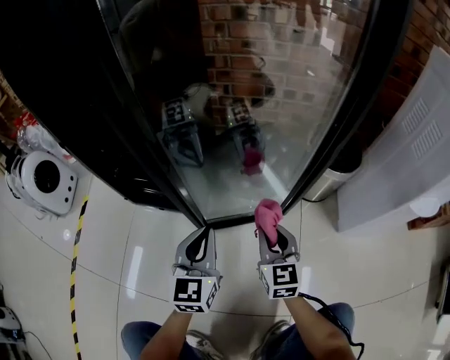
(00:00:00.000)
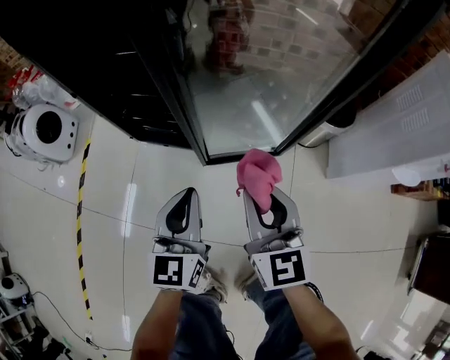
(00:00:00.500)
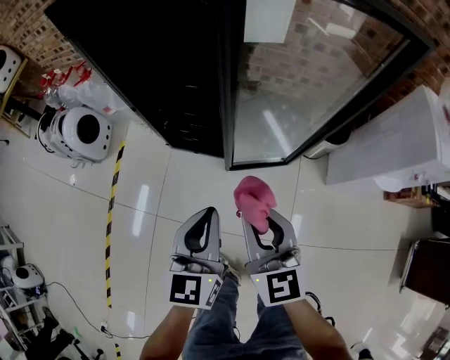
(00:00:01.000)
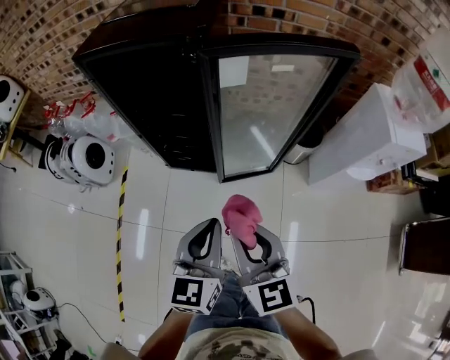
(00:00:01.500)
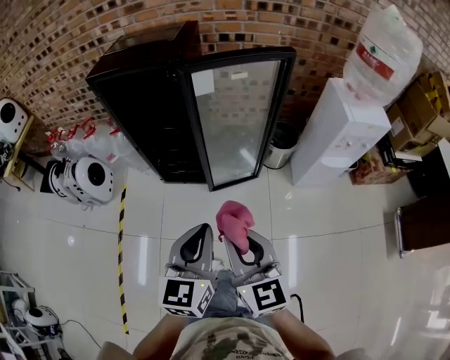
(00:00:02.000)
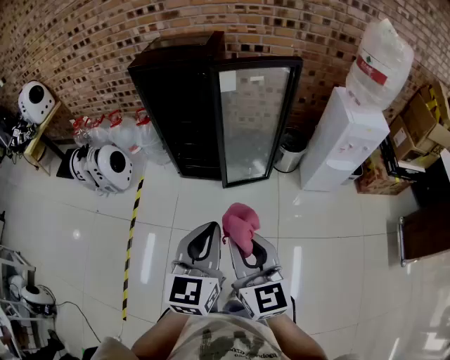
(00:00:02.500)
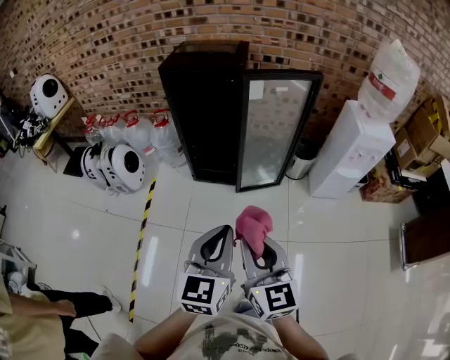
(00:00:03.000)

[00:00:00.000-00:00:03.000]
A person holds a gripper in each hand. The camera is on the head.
00:00:00.000 to 00:00:01.500: Both grippers move upward, roughly 50 cm.
00:00:01.500 to 00:00:03.000: Both grippers move backward and upward, approximately 30 cm.

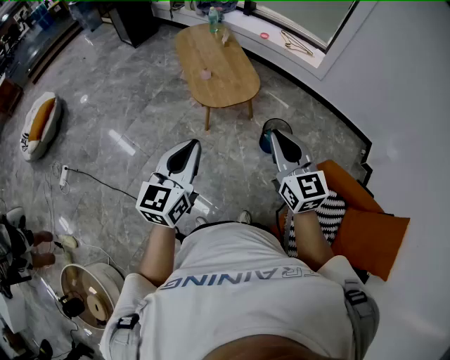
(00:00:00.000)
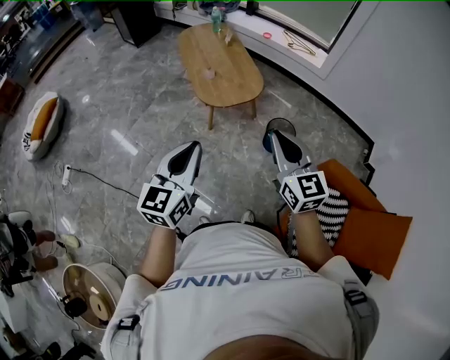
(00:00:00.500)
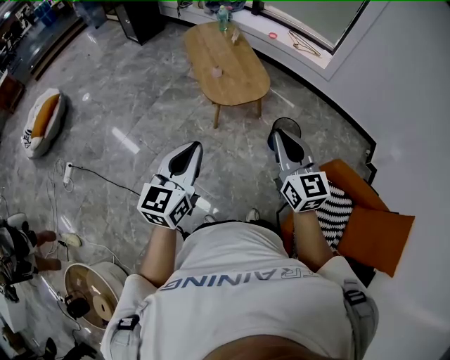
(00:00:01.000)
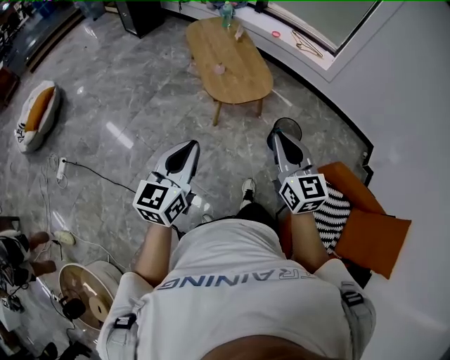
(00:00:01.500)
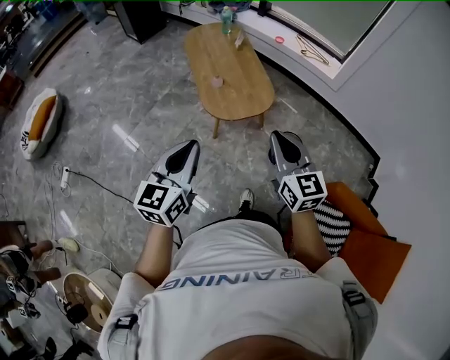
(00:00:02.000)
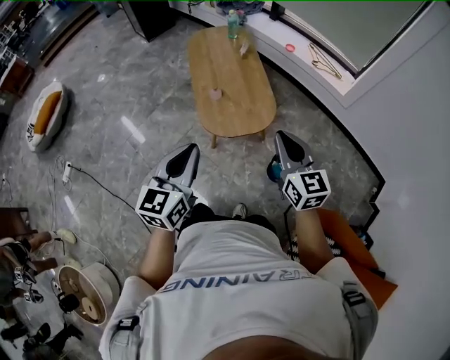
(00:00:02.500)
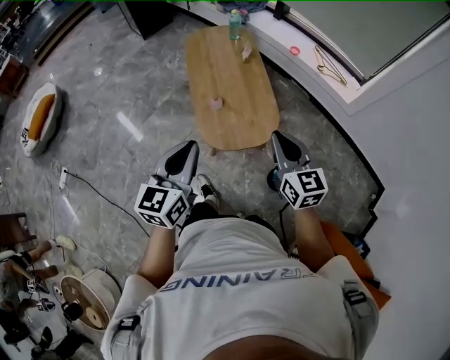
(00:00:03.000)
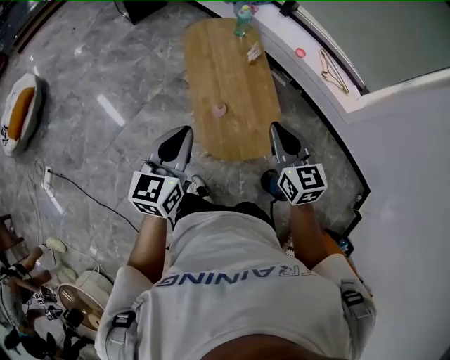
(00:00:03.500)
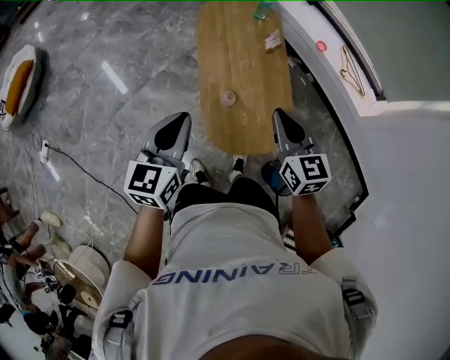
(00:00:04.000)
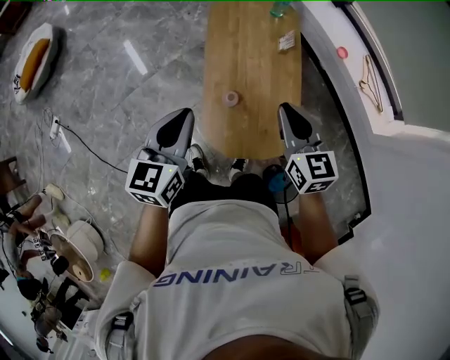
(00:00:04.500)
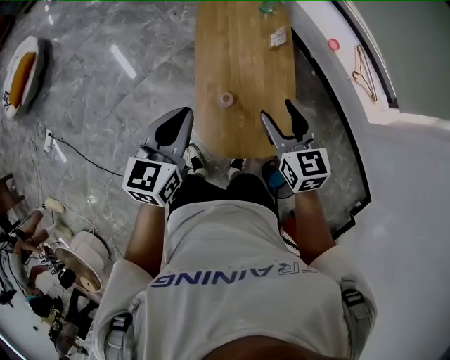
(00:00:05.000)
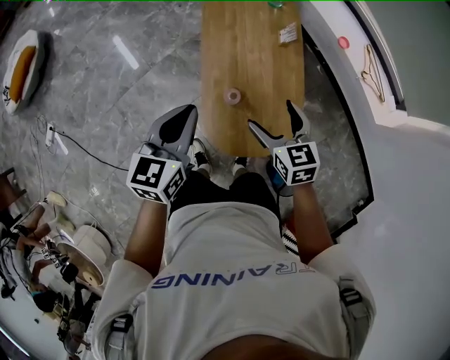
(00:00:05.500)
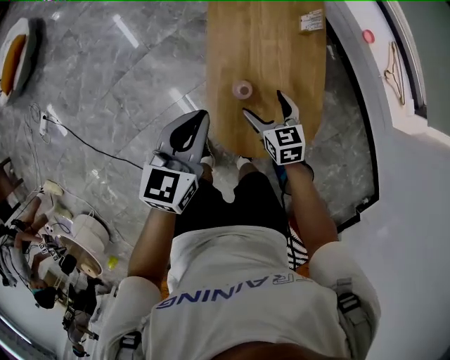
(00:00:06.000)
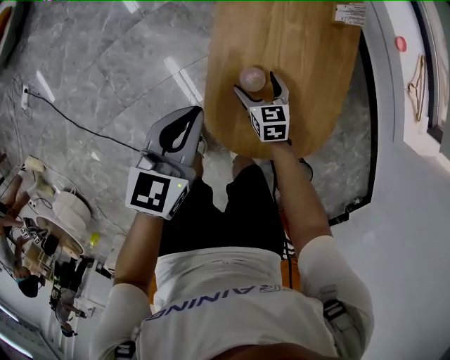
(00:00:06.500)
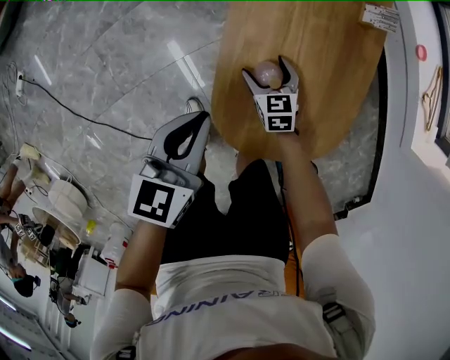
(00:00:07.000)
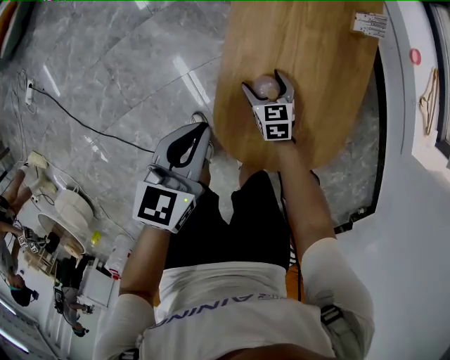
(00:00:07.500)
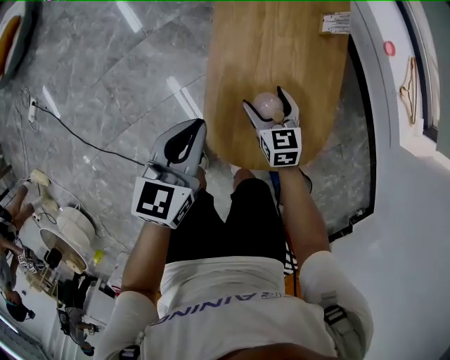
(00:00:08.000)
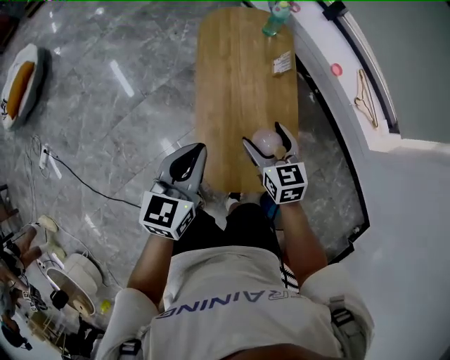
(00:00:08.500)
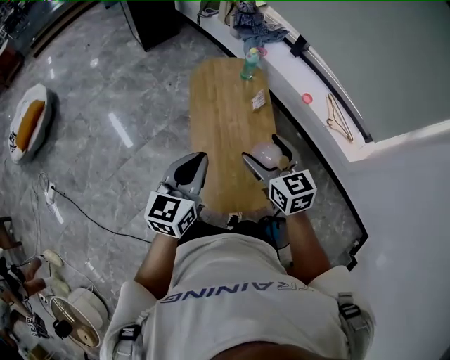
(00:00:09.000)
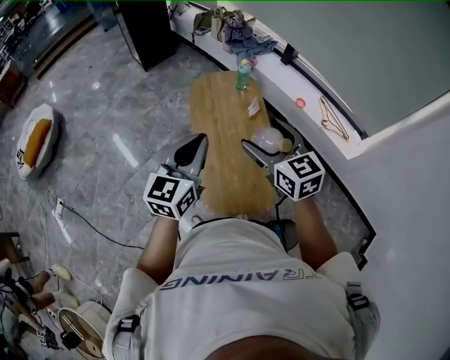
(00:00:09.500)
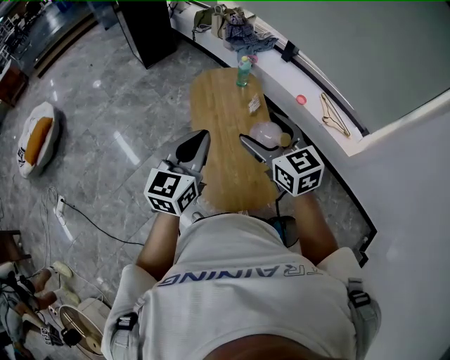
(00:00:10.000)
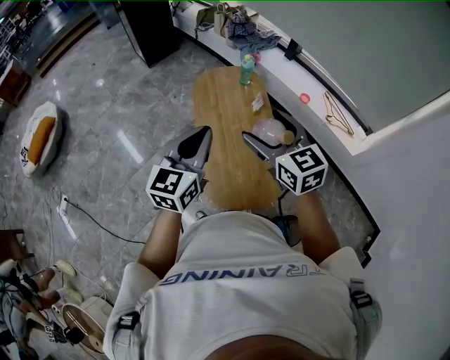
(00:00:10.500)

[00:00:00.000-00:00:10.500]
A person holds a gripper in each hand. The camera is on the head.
00:00:00.000 to 00:00:02.000: The two grippers go roughly 15 cm forward and to the left.
00:00:02.000 to 00:00:04.000: Both grippers are carried forward, roughly 50 cm.
00:00:04.000 to 00:00:06.500: The right gripper is displaced downward by approximately 50 cm, swivels some 30 degrees, and opens; the left gripper moves downward, roughly 30 cm.
00:00:06.500 to 00:00:08.500: The left gripper moves upward, roughly 20 cm; the right gripper goes some 35 cm upward.
00:00:08.500 to 00:00:10.500: Both grippers move upward, roughly 25 cm.

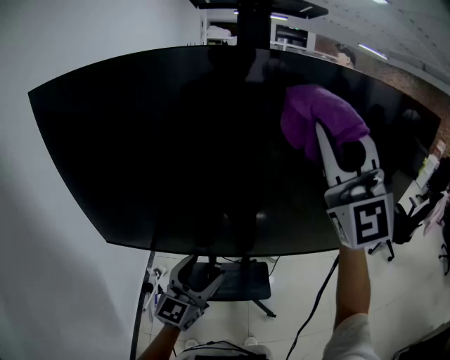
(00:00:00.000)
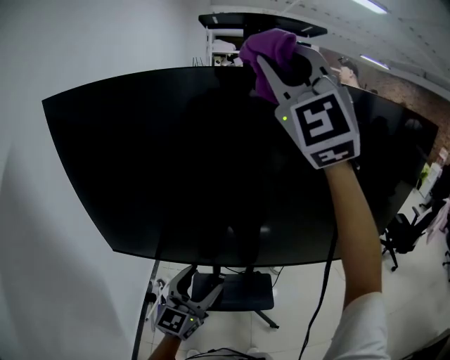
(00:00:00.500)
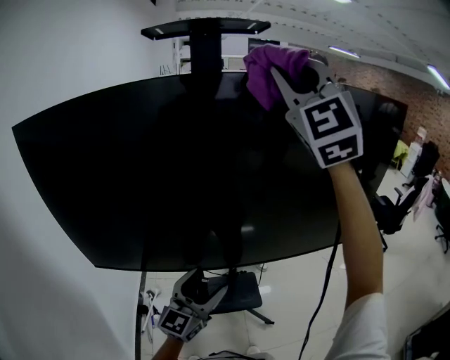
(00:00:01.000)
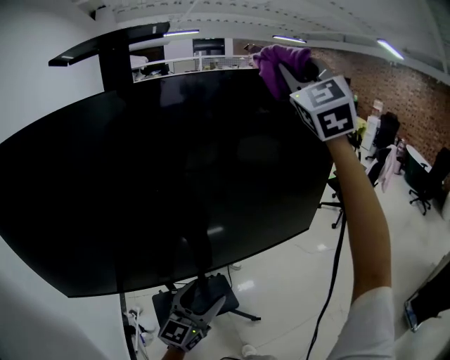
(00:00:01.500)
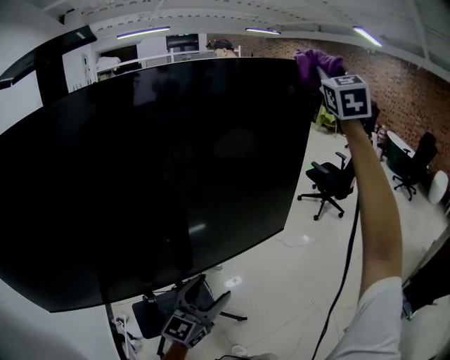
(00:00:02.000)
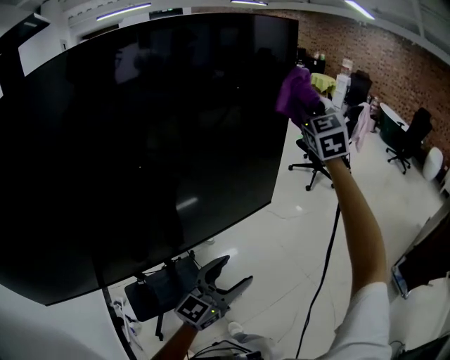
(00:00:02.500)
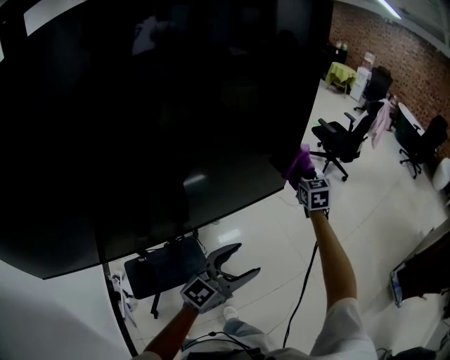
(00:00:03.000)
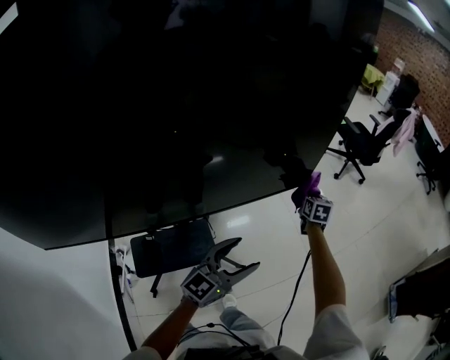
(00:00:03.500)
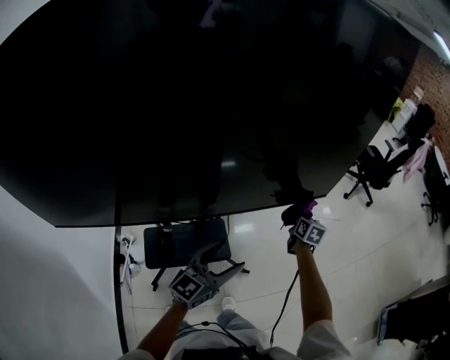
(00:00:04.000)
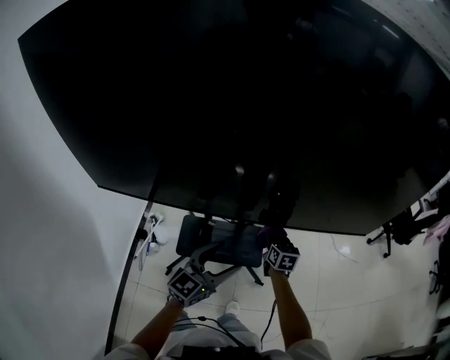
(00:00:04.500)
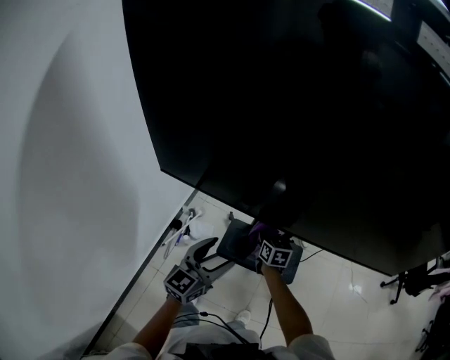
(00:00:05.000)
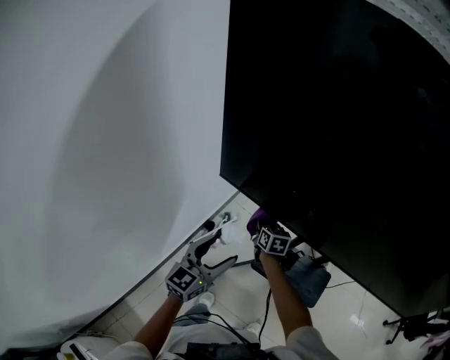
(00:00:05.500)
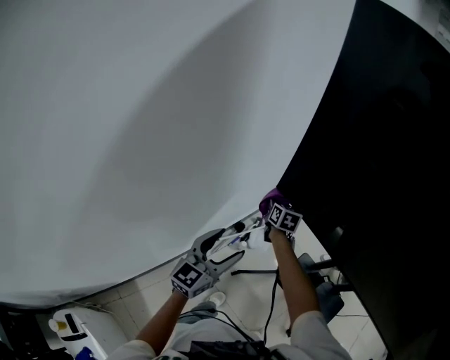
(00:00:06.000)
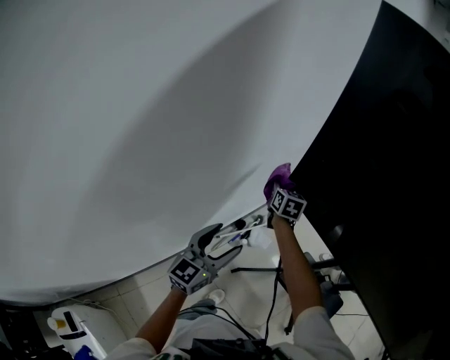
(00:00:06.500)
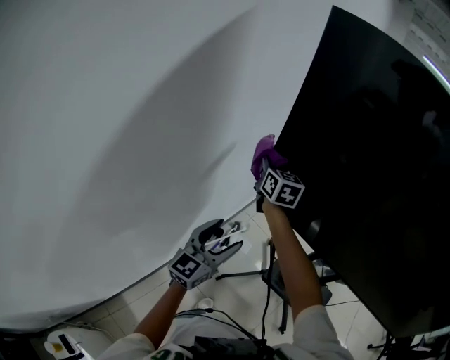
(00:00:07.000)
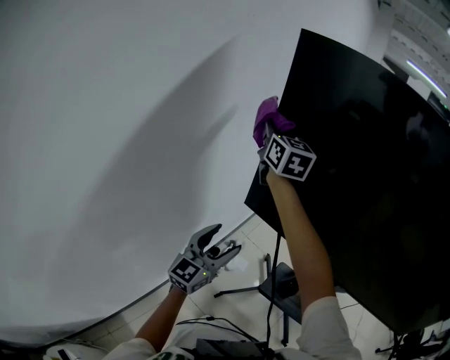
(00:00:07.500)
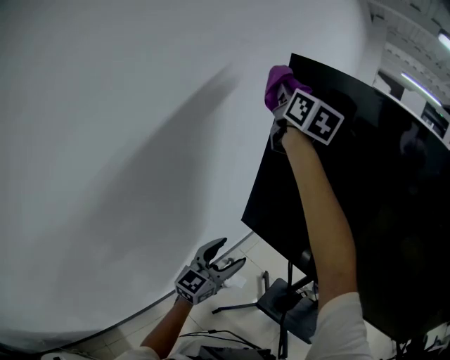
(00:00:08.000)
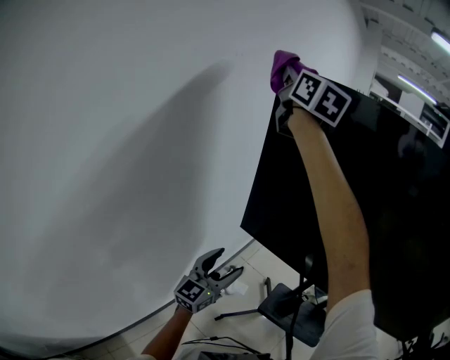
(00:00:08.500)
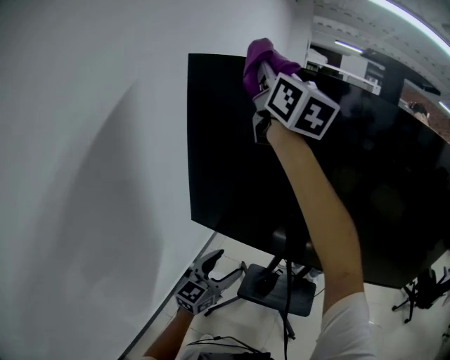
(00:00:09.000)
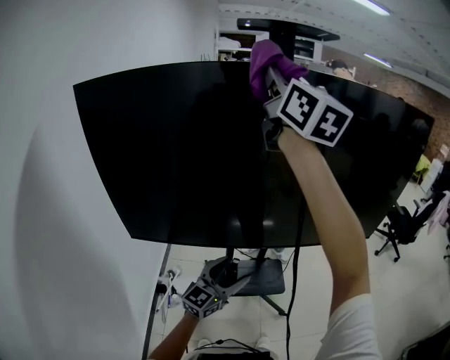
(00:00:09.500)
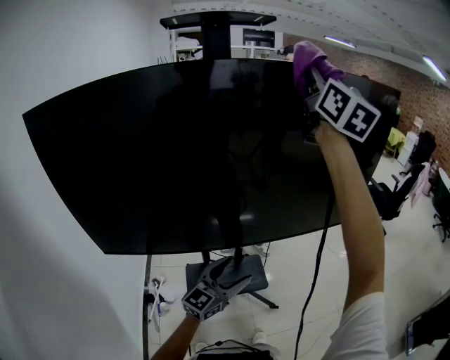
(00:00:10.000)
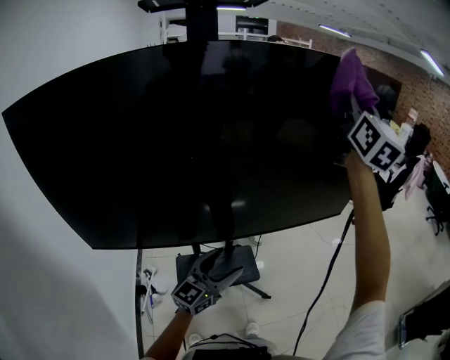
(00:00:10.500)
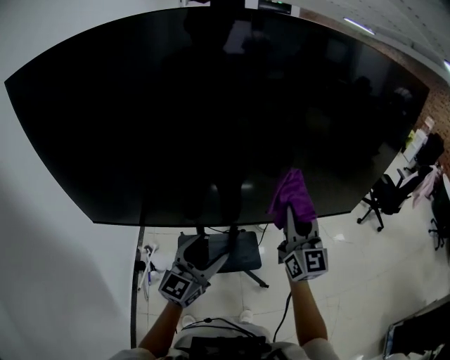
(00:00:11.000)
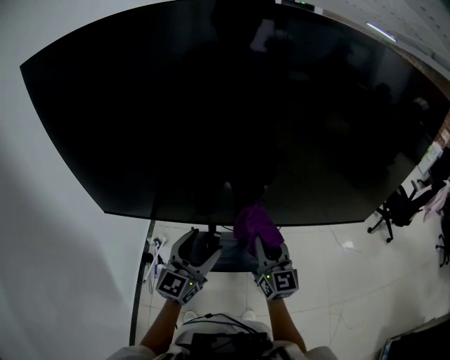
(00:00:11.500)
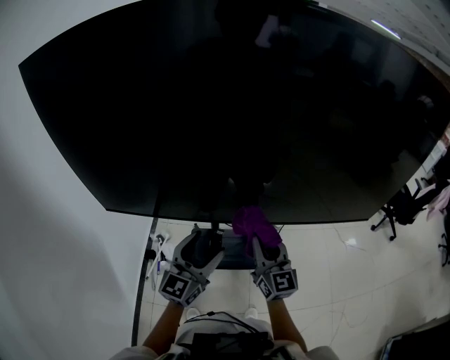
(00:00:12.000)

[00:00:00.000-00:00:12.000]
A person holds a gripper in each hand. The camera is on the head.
00:00:00.000 to 00:00:02.000: The left gripper changes place by some 30 cm, and rotates about 30 degrees; the right gripper ends up approximately 60 cm from where it was, and rotates some 60 degrees.
00:00:02.000 to 00:00:04.000: The right gripper is displaced downward by some 70 cm, and angles its fingers downward, by roughly 40 degrees. The left gripper shifts about 10 cm downward, and reaches about 10 cm to the right, then returns.
00:00:04.000 to 00:00:06.000: The pair of grippers is taken roughly 90 cm. The left gripper rotates about 70 degrees. The right gripper swivels about 70 degrees.
00:00:06.000 to 00:00:08.000: The left gripper shifts approximately 10 cm upward. Meanwhile the right gripper moves upward, some 70 cm, and angles its fingers upward, by roughly 50 degrees.
00:00:08.000 to 00:00:10.000: The pair of grippers is taken about 60 cm. The left gripper rotates roughly 50 degrees. The right gripper swivels some 60 degrees.
00:00:10.000 to 00:00:12.000: The right gripper goes about 50 cm downward, and swivels about 30 degrees; the left gripper moves some 15 cm, and turns by some 30 degrees.

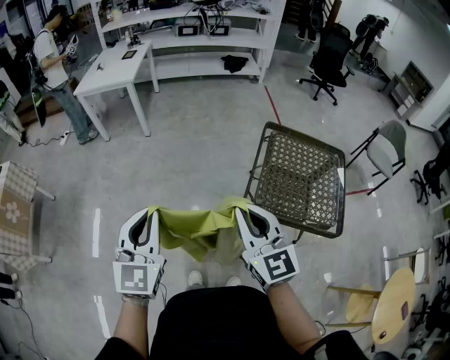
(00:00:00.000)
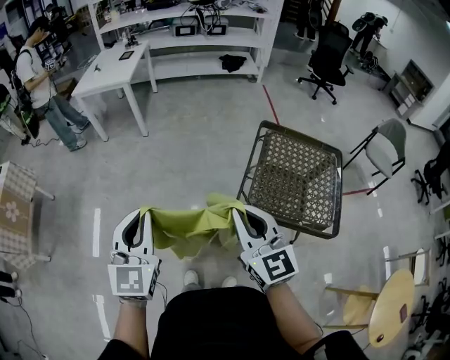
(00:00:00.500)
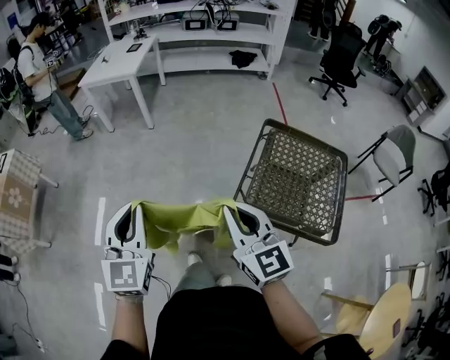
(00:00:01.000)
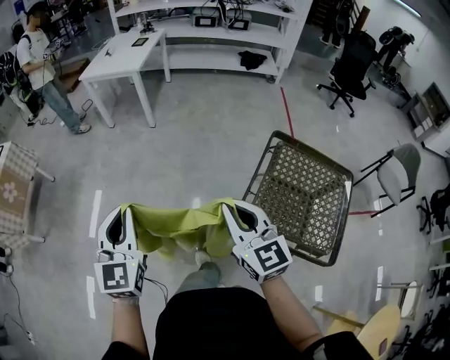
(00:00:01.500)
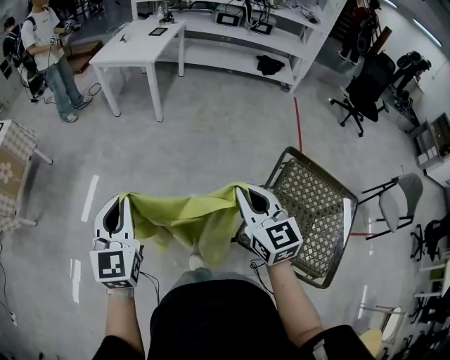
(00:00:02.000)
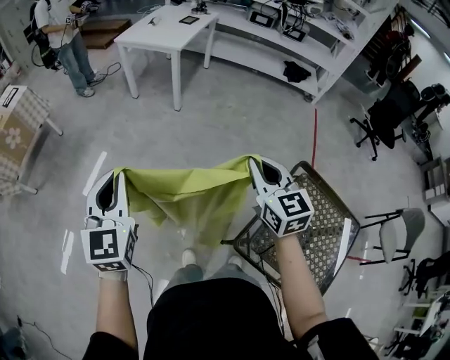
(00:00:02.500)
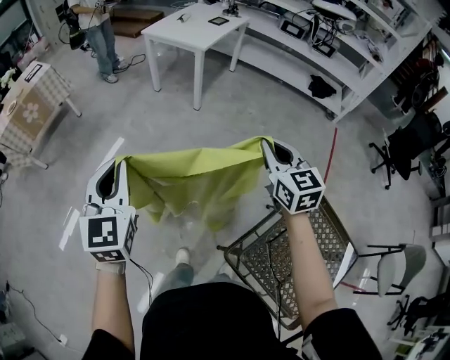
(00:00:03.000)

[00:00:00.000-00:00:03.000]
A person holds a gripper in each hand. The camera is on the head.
00:00:00.000 to 00:00:01.500: Both grippers travel together forward, about 10 cm.
00:00:01.500 to 00:00:03.000: The left gripper heads forward, covering some 15 cm, and swivels roughly 20 degrees. Meanwhile the right gripper moves forward, about 30 cm.
